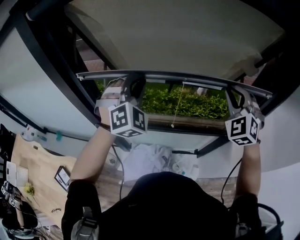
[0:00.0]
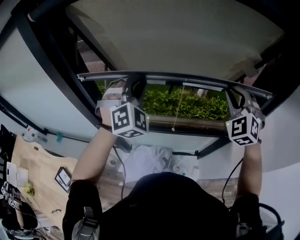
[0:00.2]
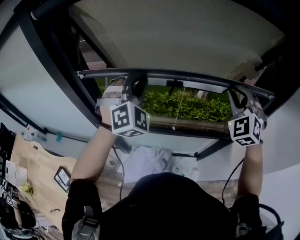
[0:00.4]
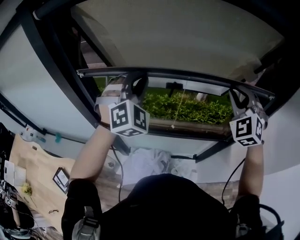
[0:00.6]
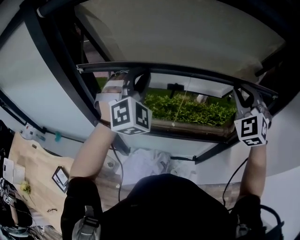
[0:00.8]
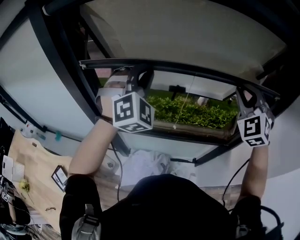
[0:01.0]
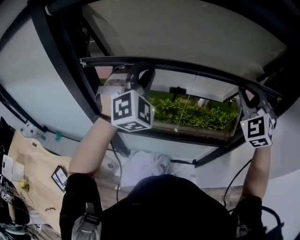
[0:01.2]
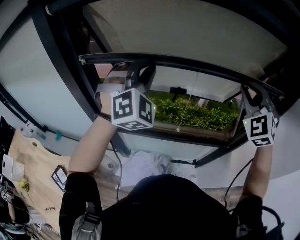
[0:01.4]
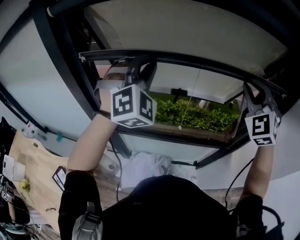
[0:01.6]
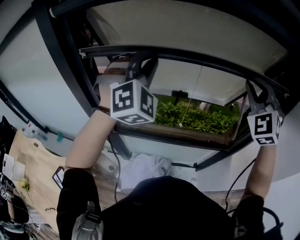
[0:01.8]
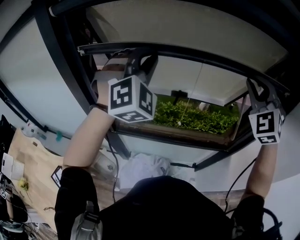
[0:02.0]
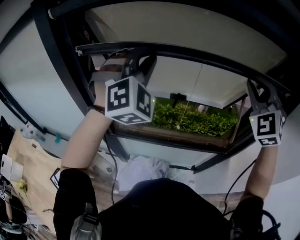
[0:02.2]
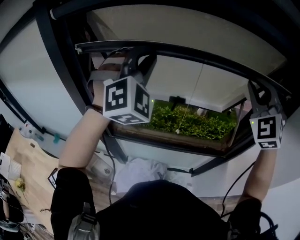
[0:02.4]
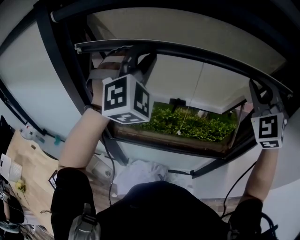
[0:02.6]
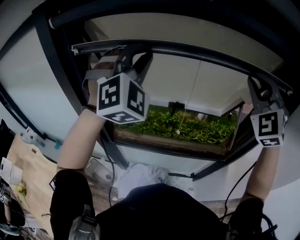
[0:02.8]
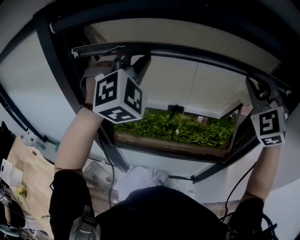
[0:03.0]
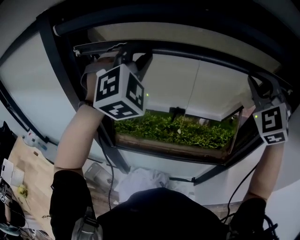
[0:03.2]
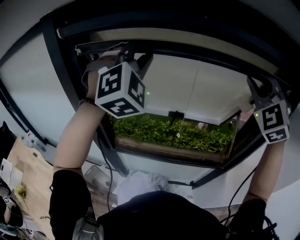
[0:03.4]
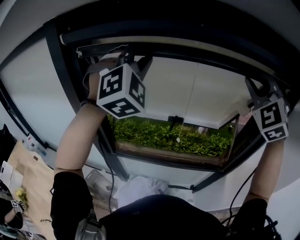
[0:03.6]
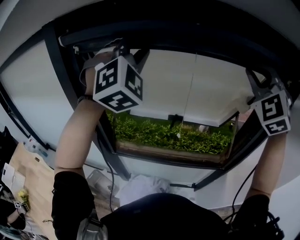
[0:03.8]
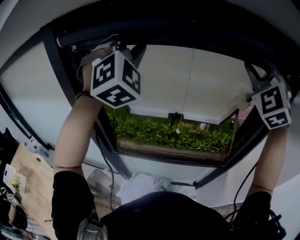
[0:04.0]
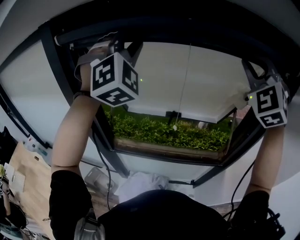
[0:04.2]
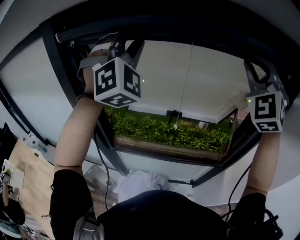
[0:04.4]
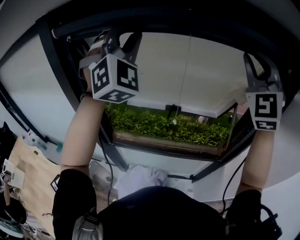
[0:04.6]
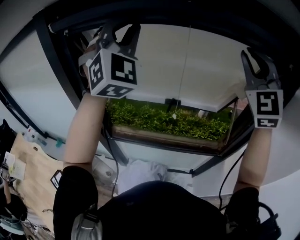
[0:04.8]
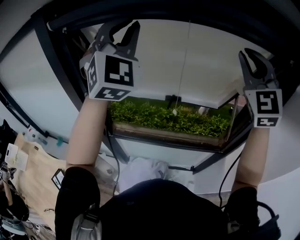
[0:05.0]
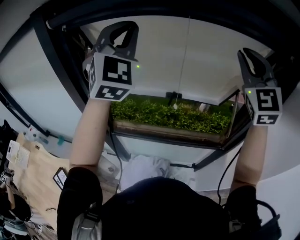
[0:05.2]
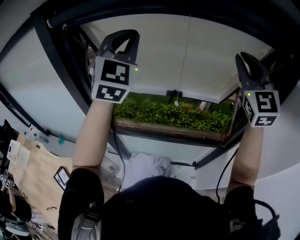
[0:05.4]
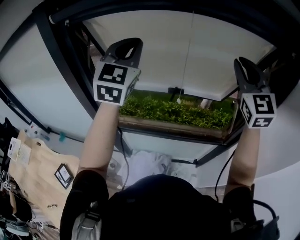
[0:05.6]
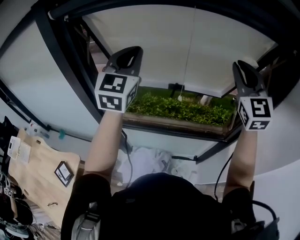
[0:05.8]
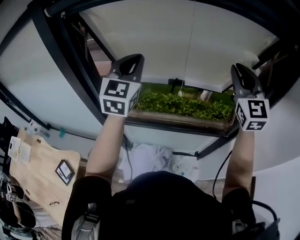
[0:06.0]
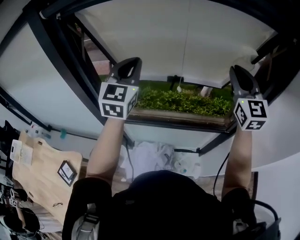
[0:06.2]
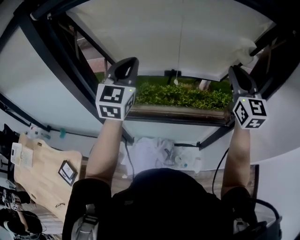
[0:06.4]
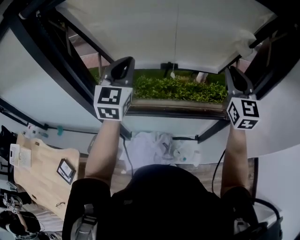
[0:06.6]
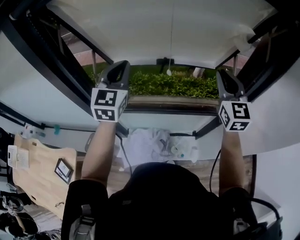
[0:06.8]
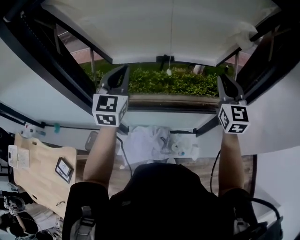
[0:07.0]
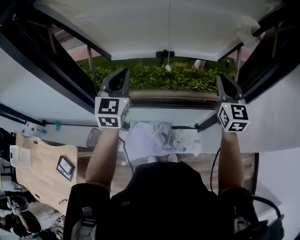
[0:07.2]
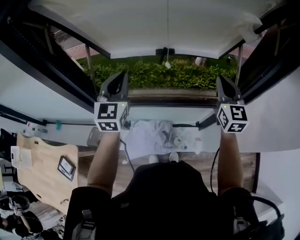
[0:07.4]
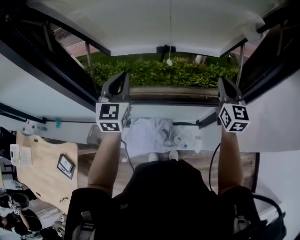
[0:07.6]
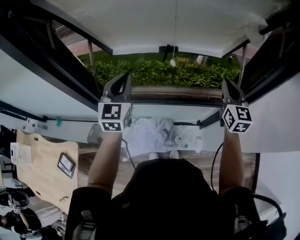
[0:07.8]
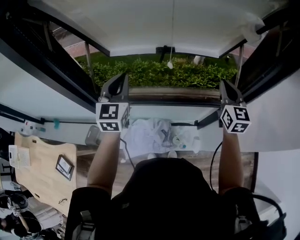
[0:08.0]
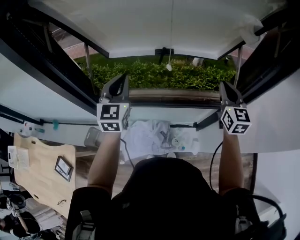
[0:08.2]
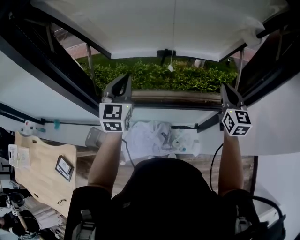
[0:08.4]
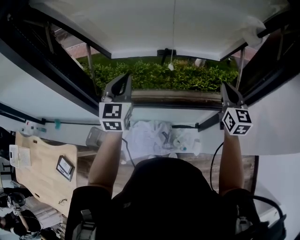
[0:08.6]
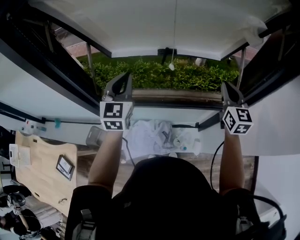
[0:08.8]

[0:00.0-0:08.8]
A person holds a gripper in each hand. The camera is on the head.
0:00.0 to 0:01.4: The grippers both shift upward by approximately 10 cm.
0:01.4 to 0:03.0: Both grippers move upward, approximately 10 cm.
0:03.0 to 0:04.4: Both grippers move upward, roughly 10 cm.
0:04.4 to 0:05.8: The two grippers go some 15 cm downward. The left gripper twists some 60 degrees counterclockwise, seen from behind. Meanwhile the right gripper swivels roughly 40 degrees.
0:05.8 to 0:07.4: Both grippers travel together downward, approximately 25 cm. The right gripper rotates approximately 30 degrees.
0:07.4 to 0:08.8: The grippers make only small movements.

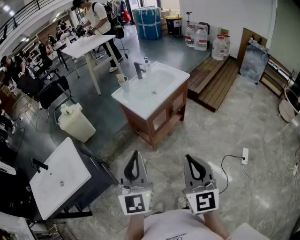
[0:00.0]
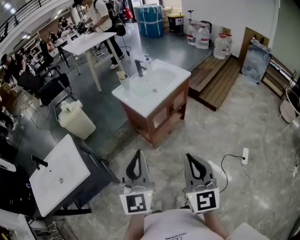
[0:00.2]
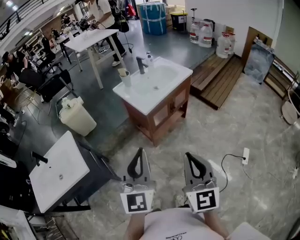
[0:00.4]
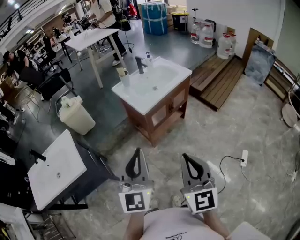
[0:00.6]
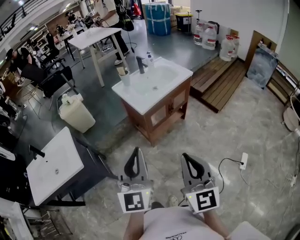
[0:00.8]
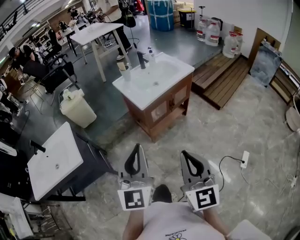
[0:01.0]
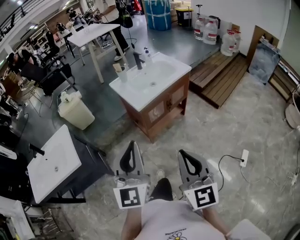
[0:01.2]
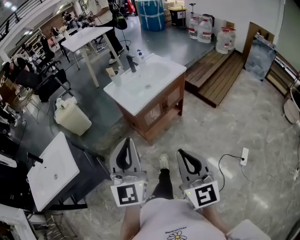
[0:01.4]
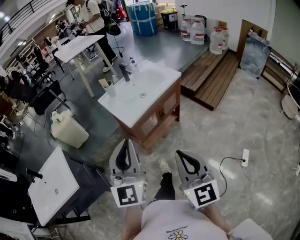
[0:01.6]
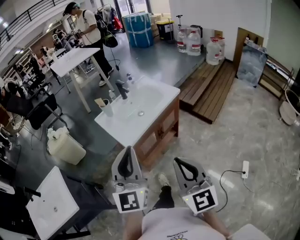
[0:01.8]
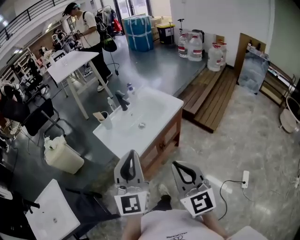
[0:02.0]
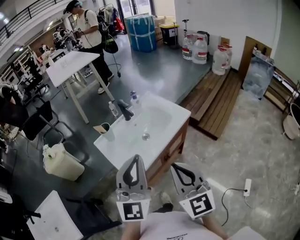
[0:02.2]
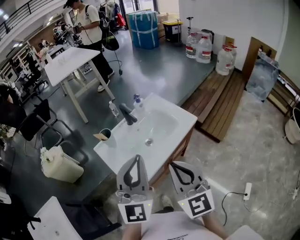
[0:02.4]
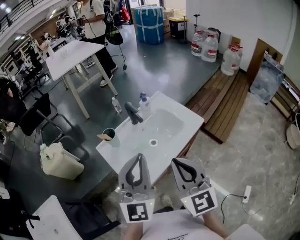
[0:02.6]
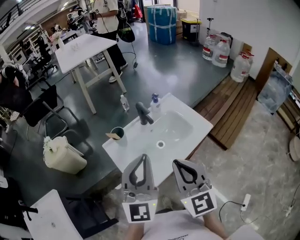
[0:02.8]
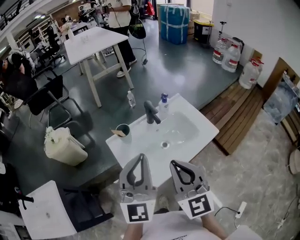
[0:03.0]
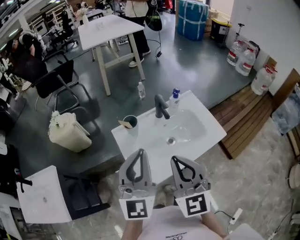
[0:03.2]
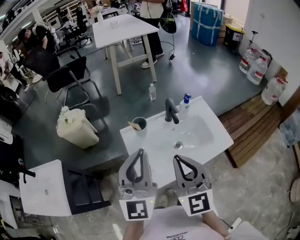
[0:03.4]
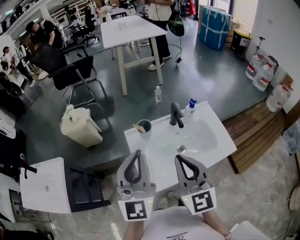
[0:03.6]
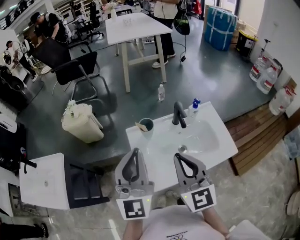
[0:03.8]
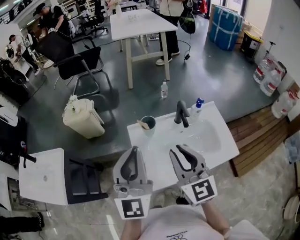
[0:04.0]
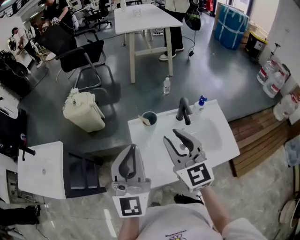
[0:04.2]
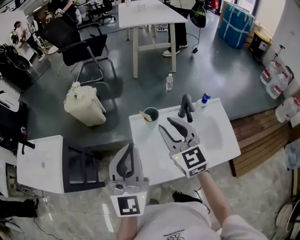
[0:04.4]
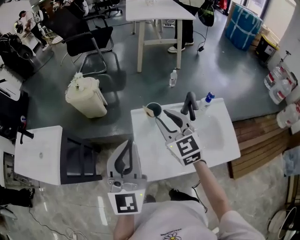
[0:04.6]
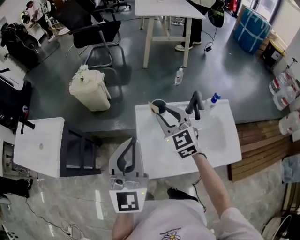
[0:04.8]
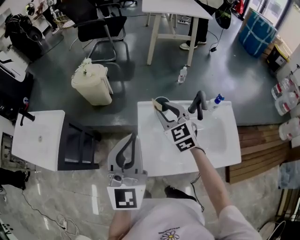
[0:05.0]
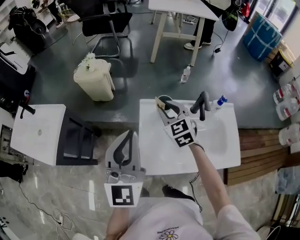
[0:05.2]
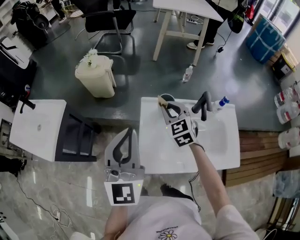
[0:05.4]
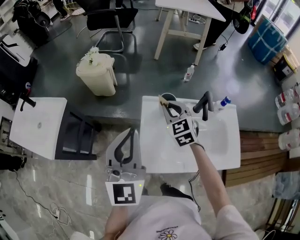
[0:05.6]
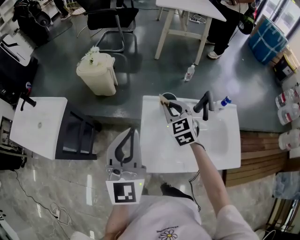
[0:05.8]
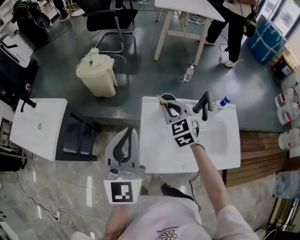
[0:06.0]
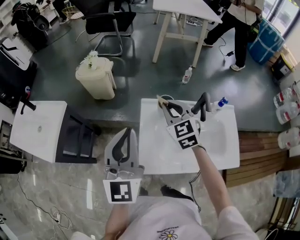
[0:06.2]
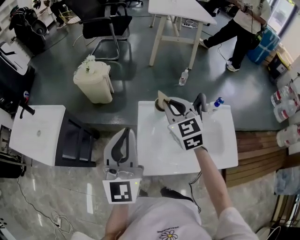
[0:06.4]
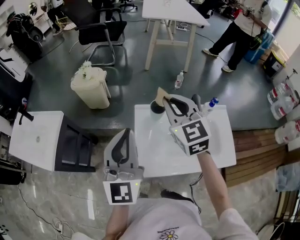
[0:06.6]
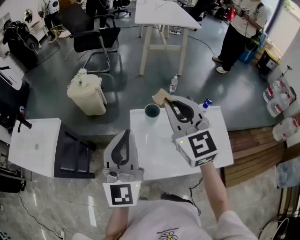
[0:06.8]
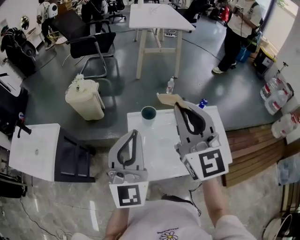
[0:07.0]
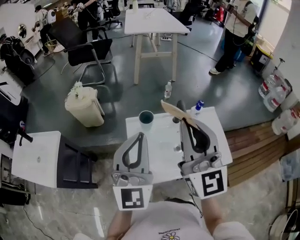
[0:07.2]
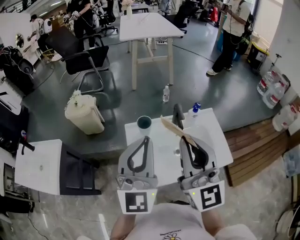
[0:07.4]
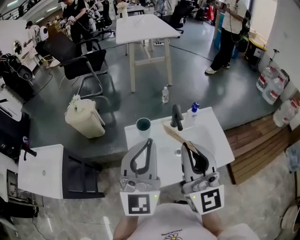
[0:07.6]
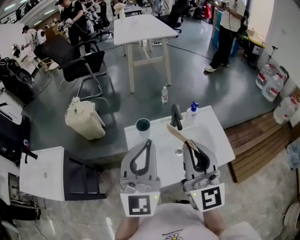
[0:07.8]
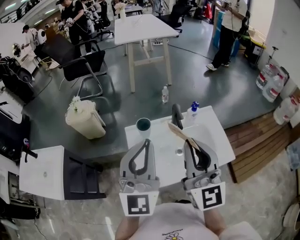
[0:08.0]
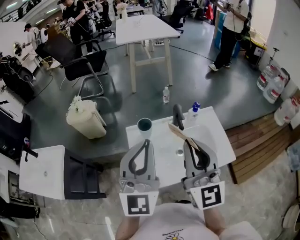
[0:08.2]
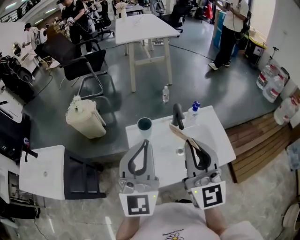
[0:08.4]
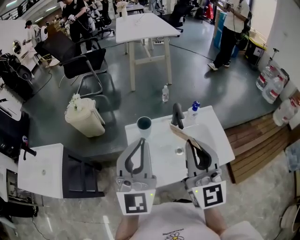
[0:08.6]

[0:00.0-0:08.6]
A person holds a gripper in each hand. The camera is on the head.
0:00.0 to 0:01.4: Both grippers travel together to the right, some 10 cm.
0:01.4 to 0:02.8: The pair of grippers is taken forward, some 50 cm.
0:02.8 to 0:04.4: The left gripper shifts by approximately 10 cm, and turns by approximately 30 degrees; the right gripper moves about 20 cm, swivels roughly 30 degrees, and opens its fingers.
0:04.4 to 0:05.8: The left gripper moves some 5 cm; the right gripper heads downward and forward, covering about 15 cm, and turns by about 20 degrees.
0:05.8 to 0:07.2: The left gripper goes about 10 cm to the right and upward. Meanwhile the right gripper shifts about 30 cm upward and backward, and tilts its fingers some 40 degrees upward.
0:07.2 to 0:08.6: The right gripper shifts by roughly 5 cm.

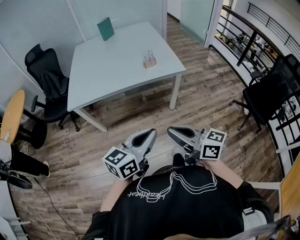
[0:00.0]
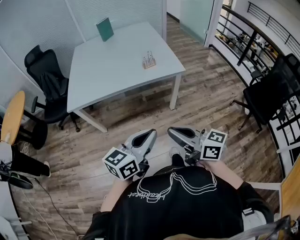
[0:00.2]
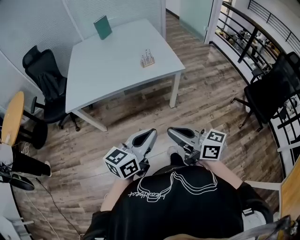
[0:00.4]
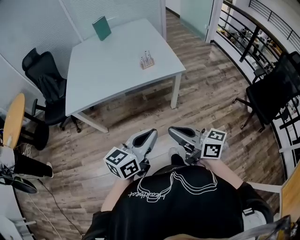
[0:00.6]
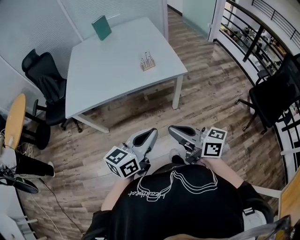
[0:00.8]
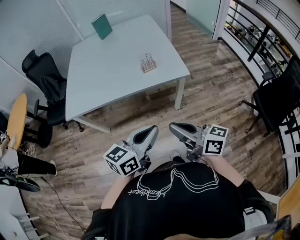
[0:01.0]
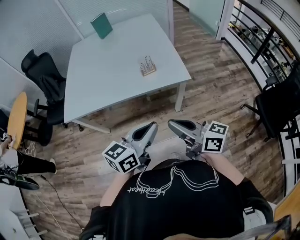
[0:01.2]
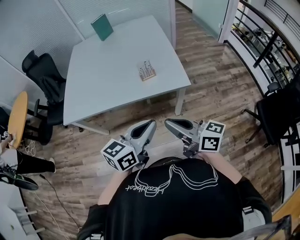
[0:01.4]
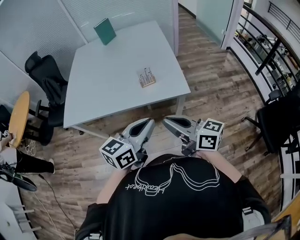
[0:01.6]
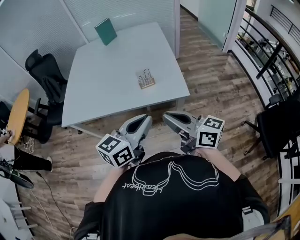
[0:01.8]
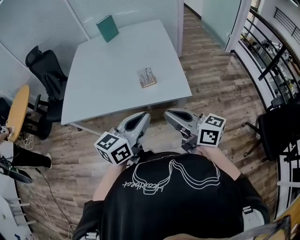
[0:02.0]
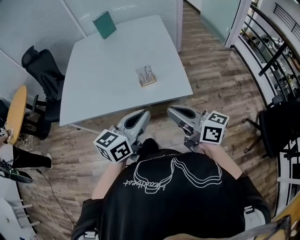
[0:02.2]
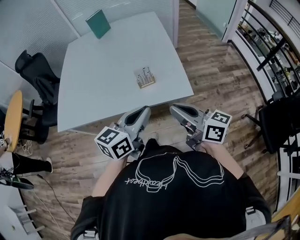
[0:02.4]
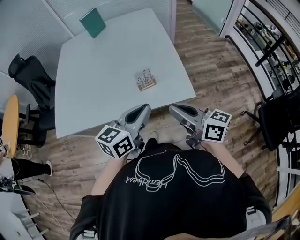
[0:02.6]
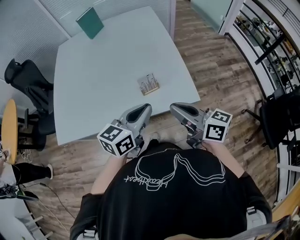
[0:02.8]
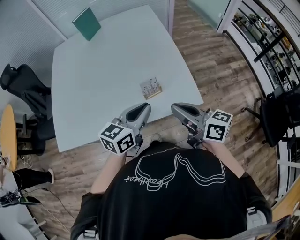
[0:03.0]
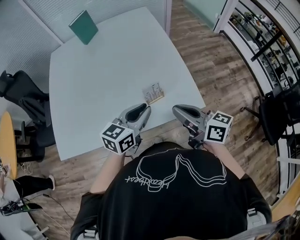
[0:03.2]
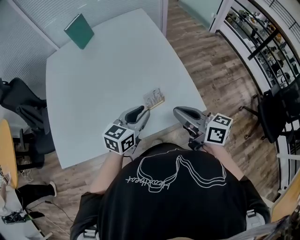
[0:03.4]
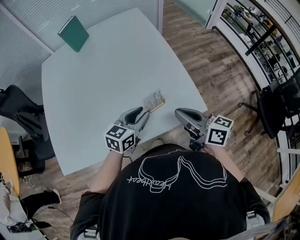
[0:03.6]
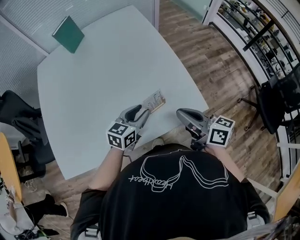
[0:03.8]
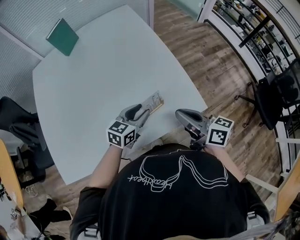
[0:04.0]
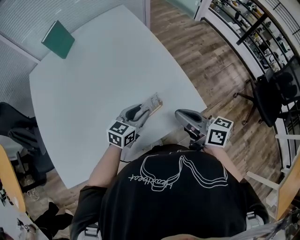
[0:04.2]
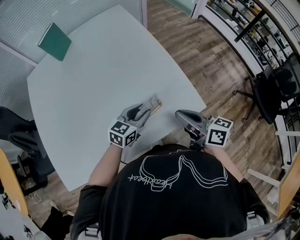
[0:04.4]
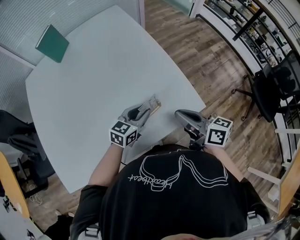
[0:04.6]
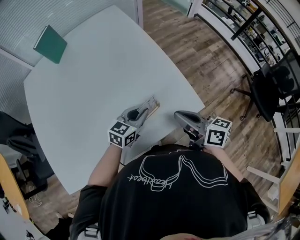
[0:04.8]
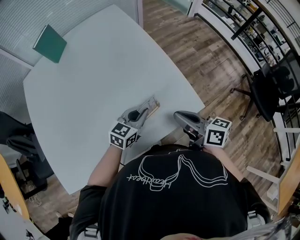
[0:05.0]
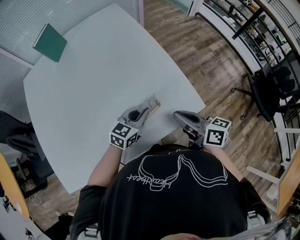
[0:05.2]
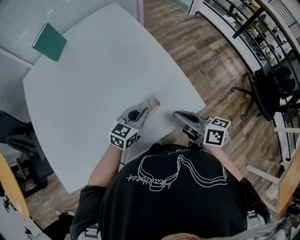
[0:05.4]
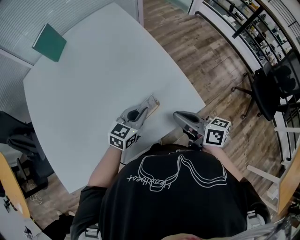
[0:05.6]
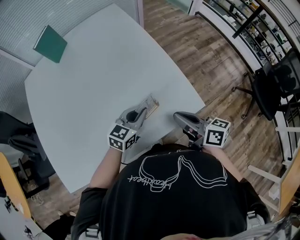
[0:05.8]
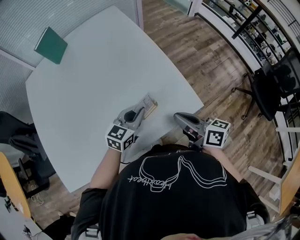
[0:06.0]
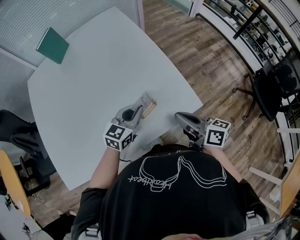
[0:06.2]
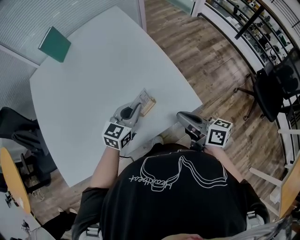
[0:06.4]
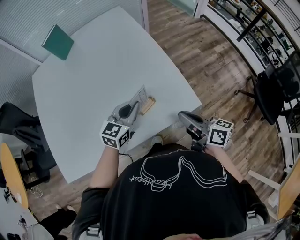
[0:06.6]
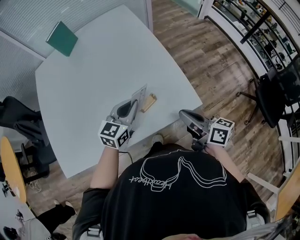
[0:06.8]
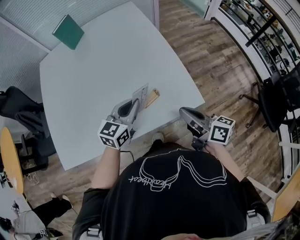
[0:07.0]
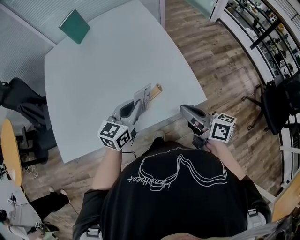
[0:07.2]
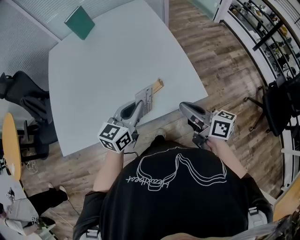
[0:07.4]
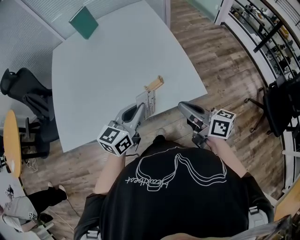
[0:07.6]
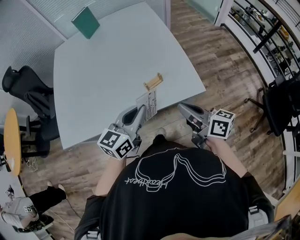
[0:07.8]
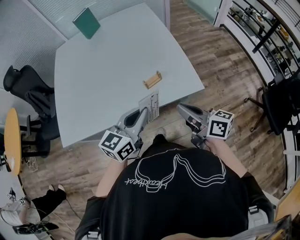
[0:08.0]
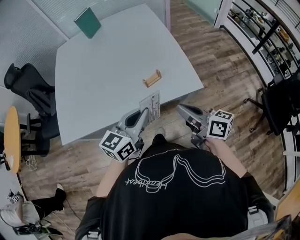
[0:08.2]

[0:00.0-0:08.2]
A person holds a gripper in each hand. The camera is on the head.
0:00.0 to 0:01.6: The grippers both shift forward and to the right by about 30 cm.
0:01.6 to 0:03.2: Both grippers travel together forward, roughly 25 cm.
0:03.2 to 0:05.0: The right gripper moves downward and forward, about 10 cm; the left gripper is displaced downward and forward by approximately 15 cm, turns by some 20 degrees, and opens and closes again.
0:05.0 to 0:06.6: The left gripper travels upward by some 5 cm. Meanwhile the right gripper moves about 5 cm.
0:06.6 to 0:08.2: The left gripper heads backward, covering about 20 cm. The right gripper shifts approximately 15 cm backward.
